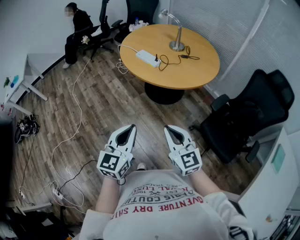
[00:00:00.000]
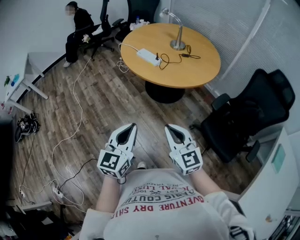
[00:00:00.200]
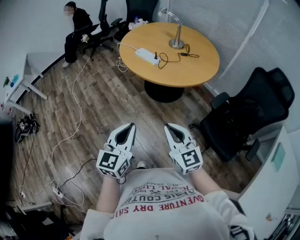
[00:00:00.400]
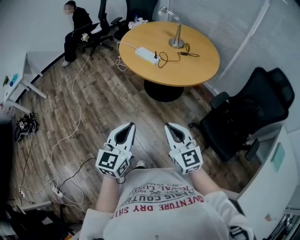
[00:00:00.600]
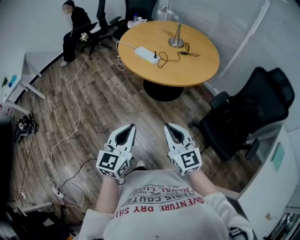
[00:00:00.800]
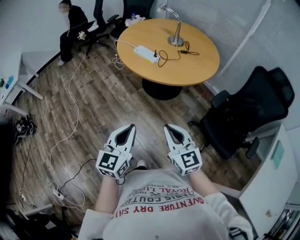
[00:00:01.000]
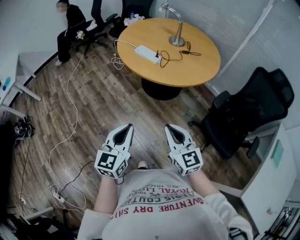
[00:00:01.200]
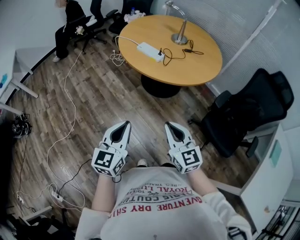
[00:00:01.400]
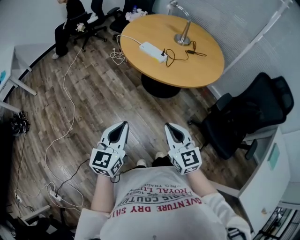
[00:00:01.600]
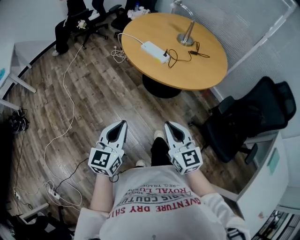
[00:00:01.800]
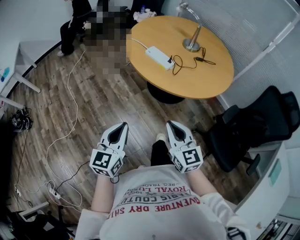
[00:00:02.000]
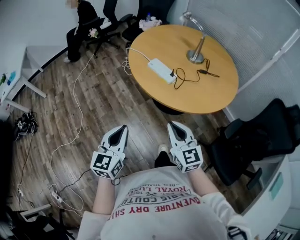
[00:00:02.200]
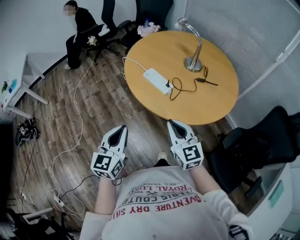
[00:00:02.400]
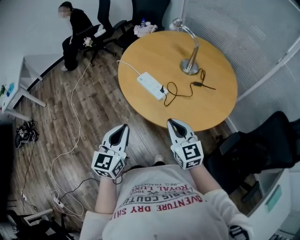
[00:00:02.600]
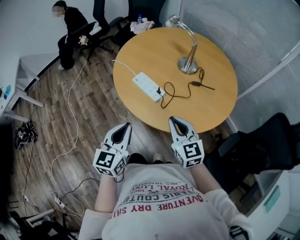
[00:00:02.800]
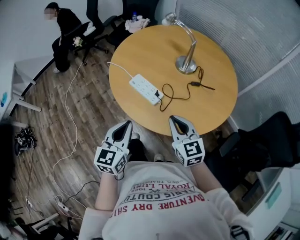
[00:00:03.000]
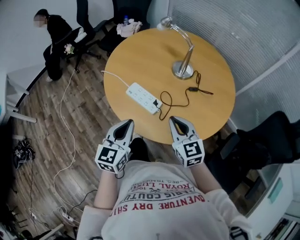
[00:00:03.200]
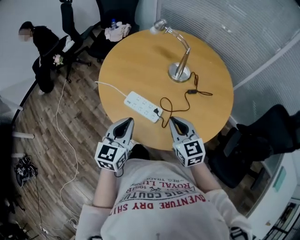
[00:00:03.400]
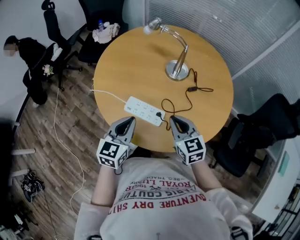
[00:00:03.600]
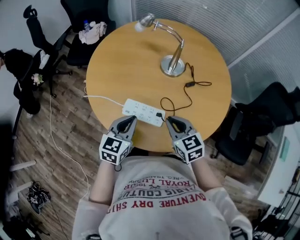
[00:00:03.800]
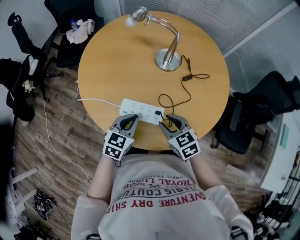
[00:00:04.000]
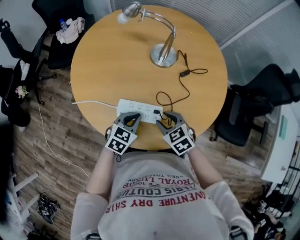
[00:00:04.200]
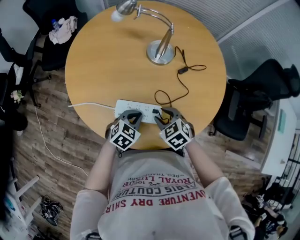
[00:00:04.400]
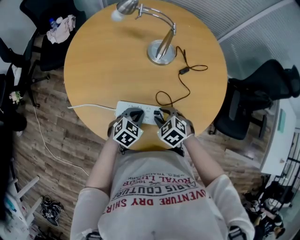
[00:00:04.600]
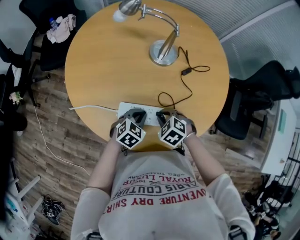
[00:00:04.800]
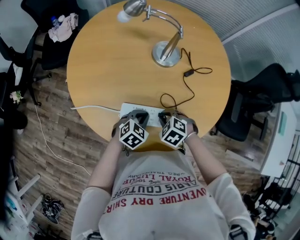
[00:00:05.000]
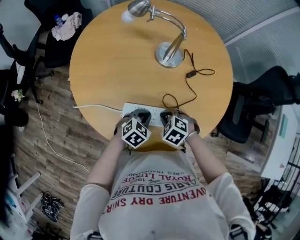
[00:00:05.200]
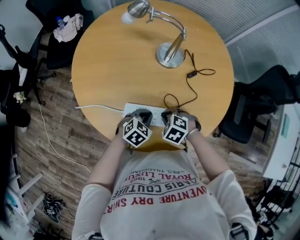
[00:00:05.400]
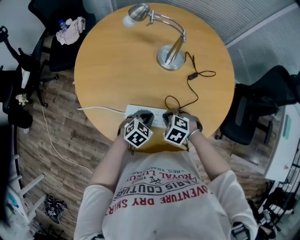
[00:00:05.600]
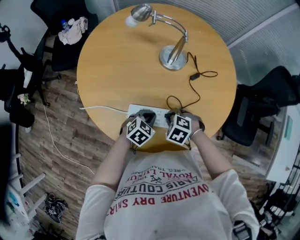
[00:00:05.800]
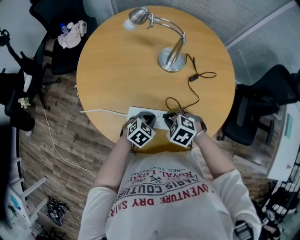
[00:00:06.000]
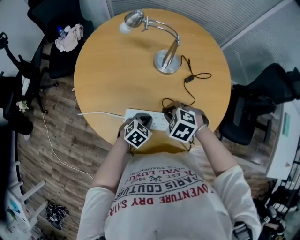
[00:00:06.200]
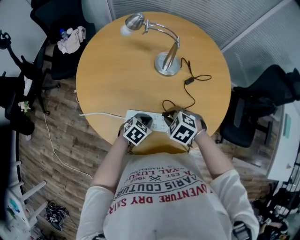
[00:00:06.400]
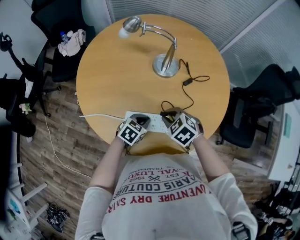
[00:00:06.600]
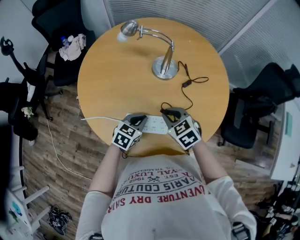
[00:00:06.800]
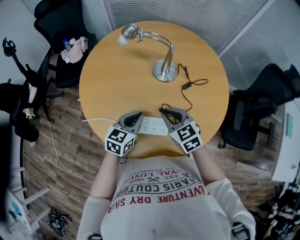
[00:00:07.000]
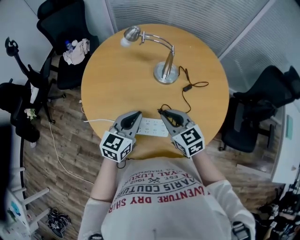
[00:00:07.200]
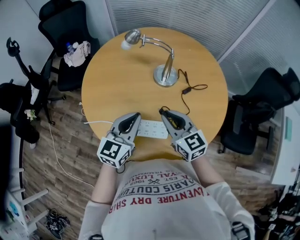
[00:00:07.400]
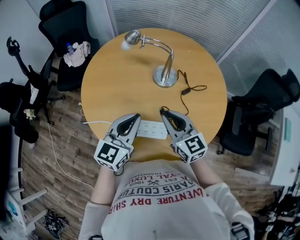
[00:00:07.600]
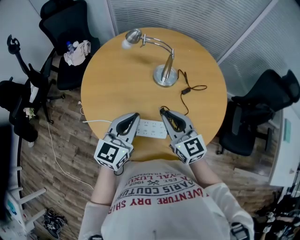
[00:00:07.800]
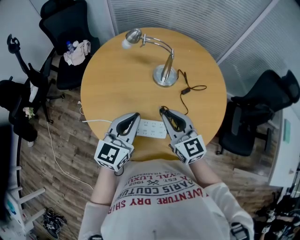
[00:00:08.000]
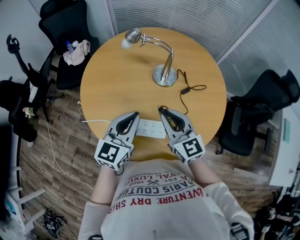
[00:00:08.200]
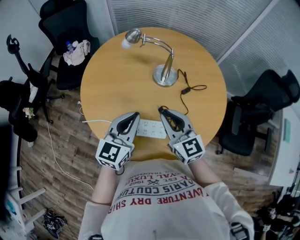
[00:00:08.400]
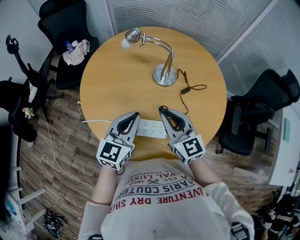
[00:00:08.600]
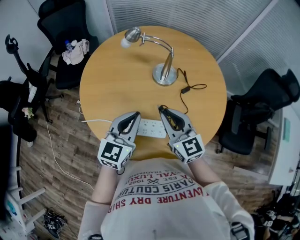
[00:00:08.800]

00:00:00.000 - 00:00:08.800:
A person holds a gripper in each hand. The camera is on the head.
00:00:00.000 - 00:00:01.400: The two grippers go roughly 10 cm to the left and forward.
00:00:01.400 - 00:00:03.000: The two grippers go approximately 35 cm forward.
00:00:03.000 - 00:00:04.400: The grippers both shift downward by roughly 20 cm. The right gripper tips its fingers downward by approximately 40 degrees, and opens. The left gripper tilts its fingers roughly 30 degrees downward.
00:00:04.400 - 00:00:05.800: The right gripper changes its angle by roughly 30 degrees, and closes its fingers.
00:00:05.800 - 00:00:07.400: The grippers both shift upward by approximately 20 cm. The right gripper points its fingers about 60 degrees further upward. Meanwhile the left gripper tilts its fingers some 40 degrees upward.
00:00:07.400 - 00:00:08.800: The grippers make only small movements.

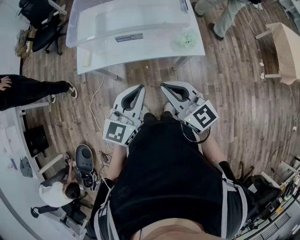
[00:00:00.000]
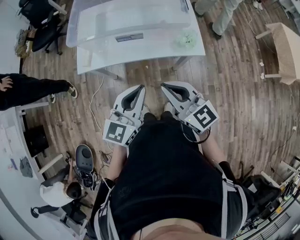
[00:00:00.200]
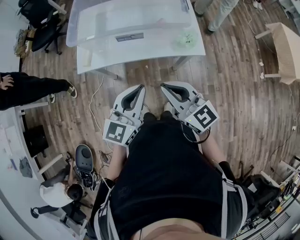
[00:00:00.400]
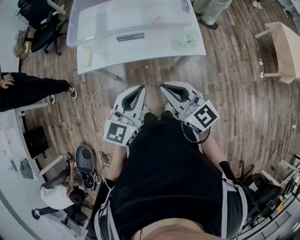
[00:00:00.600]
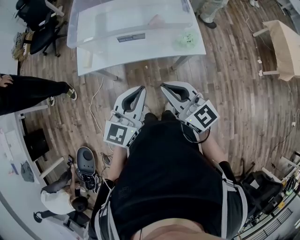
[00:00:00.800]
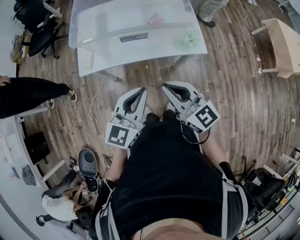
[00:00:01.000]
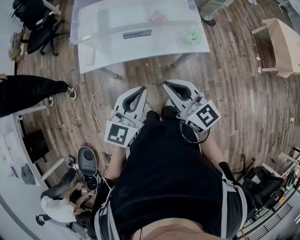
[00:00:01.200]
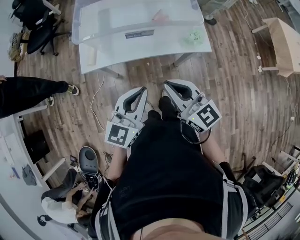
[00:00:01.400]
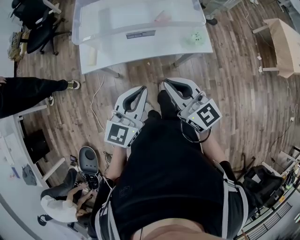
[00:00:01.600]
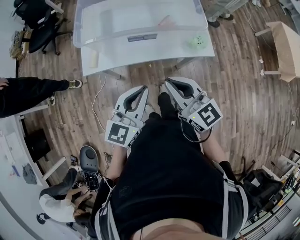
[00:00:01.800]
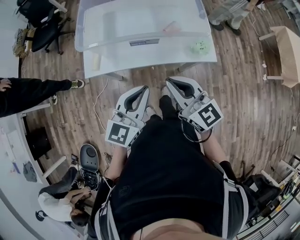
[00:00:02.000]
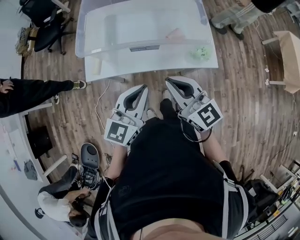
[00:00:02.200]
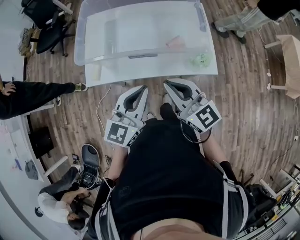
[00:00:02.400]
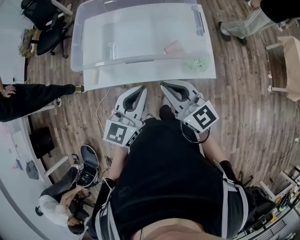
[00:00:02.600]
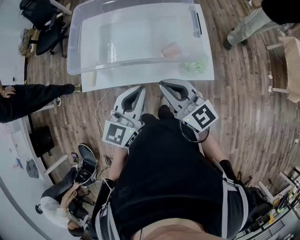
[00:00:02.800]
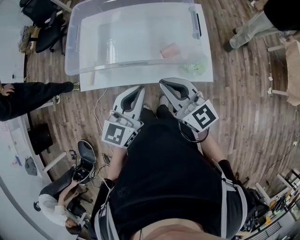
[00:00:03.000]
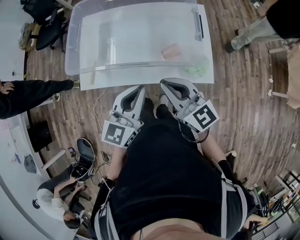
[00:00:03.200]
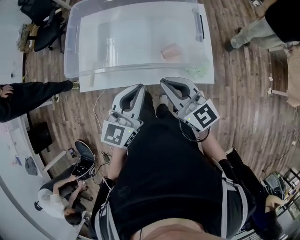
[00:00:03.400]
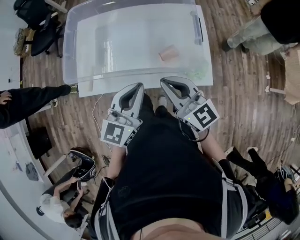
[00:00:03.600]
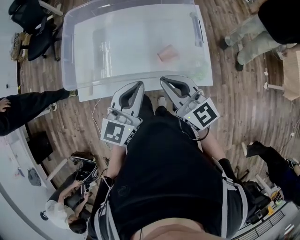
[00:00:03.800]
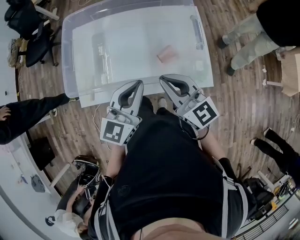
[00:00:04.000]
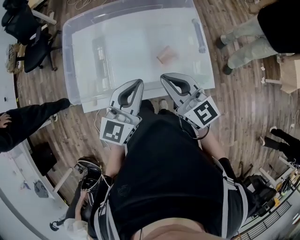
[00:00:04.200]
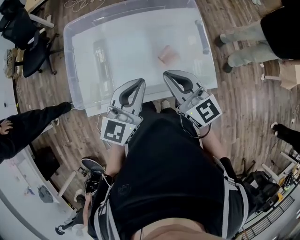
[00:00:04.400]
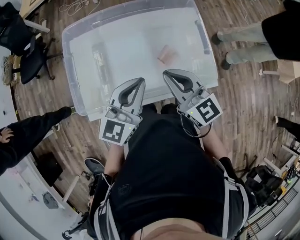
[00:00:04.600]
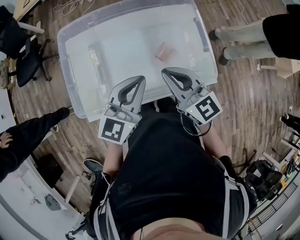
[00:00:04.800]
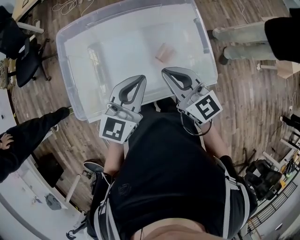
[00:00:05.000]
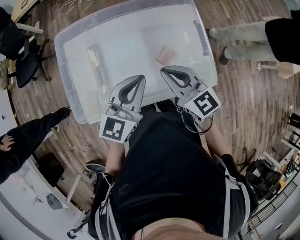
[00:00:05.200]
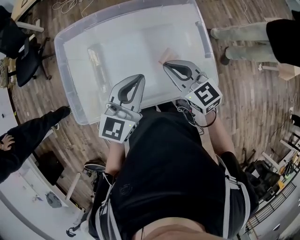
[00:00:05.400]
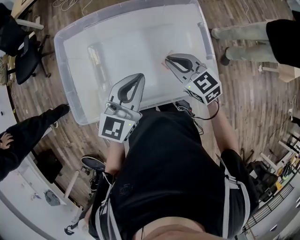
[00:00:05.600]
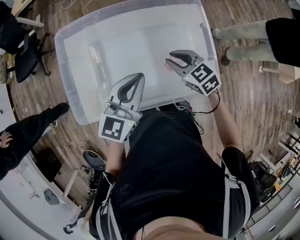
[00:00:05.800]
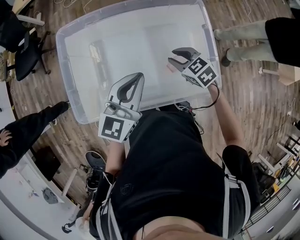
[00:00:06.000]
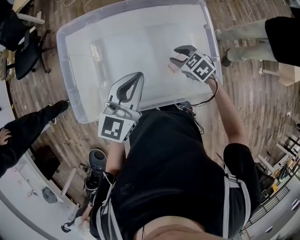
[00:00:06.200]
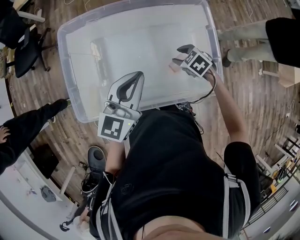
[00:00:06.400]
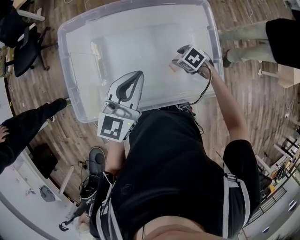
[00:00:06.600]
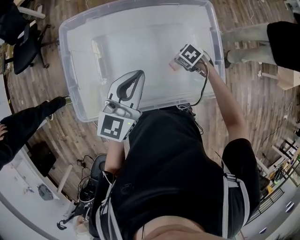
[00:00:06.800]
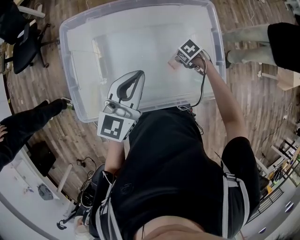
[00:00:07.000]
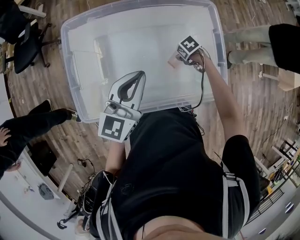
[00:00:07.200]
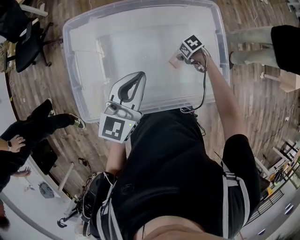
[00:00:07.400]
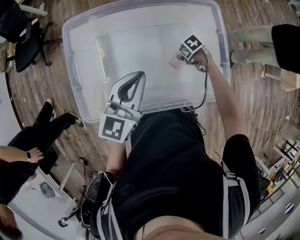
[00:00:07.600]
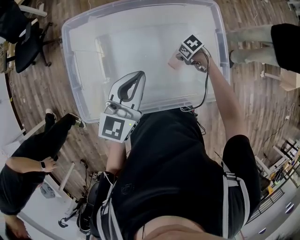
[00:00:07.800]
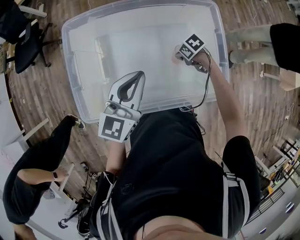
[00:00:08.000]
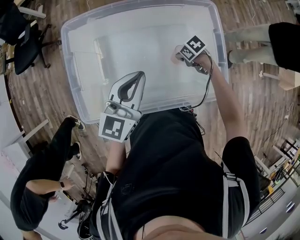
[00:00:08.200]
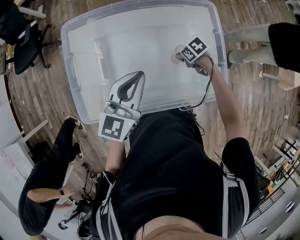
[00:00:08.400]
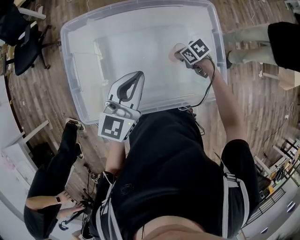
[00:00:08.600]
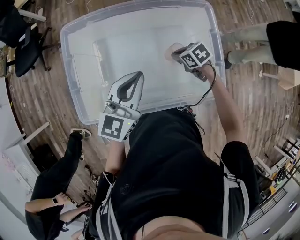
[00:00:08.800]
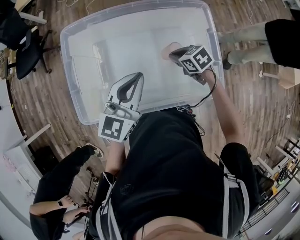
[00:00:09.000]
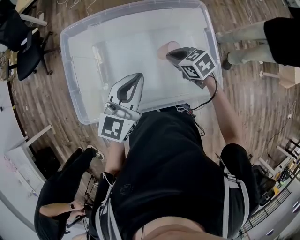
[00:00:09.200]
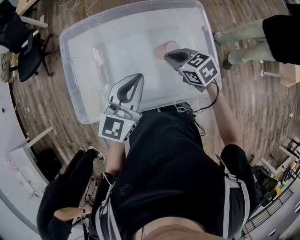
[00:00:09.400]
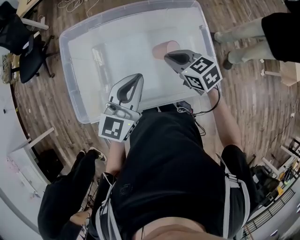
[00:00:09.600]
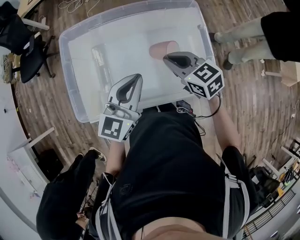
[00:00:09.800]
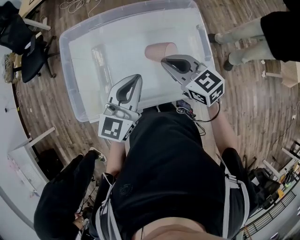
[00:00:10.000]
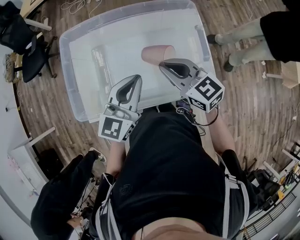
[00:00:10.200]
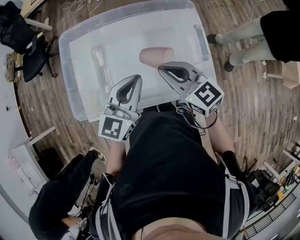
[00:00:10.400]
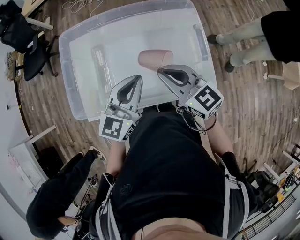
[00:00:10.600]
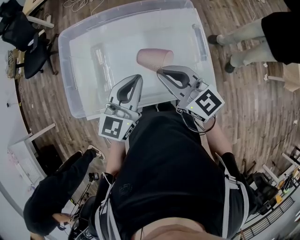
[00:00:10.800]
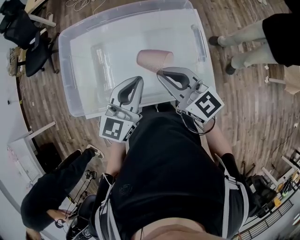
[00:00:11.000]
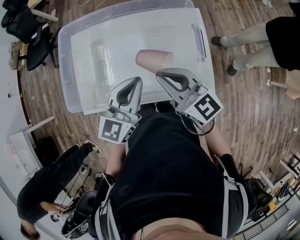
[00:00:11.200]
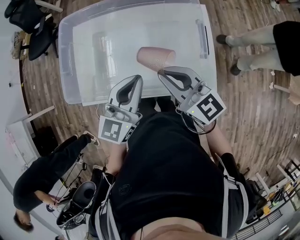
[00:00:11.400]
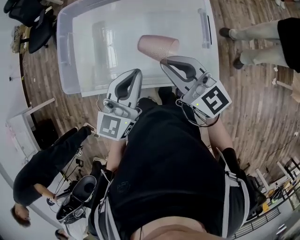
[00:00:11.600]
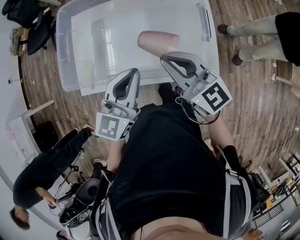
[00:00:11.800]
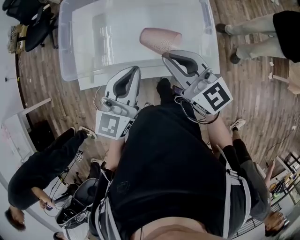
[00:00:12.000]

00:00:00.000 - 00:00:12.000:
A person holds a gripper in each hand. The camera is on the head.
00:00:00.000 - 00:00:01.600: The grippers both shift to the left by some 10 cm.
00:00:01.600 - 00:00:03.000: Both grippers move forward and to the right, some 20 cm.
00:00:03.000 - 00:00:04.400: The left gripper is displaced forward and to the left by approximately 15 cm; the right gripper goes about 15 cm forward.
00:00:04.400 - 00:00:06.000: The left gripper travels forward by roughly 10 cm; the right gripper is displaced downward and forward by about 20 cm, tilts its fingers about 40 degrees downward, and opens up.
00:00:06.000 - 00:00:07.600: The right gripper travels downward by some 15 cm, and turns by roughly 40 degrees.
00:00:07.600 - 00:00:09.000: The right gripper travels upward by some 15 cm, rotates approximately 30 degrees, and closes.
00:00:09.000 - 00:00:10.400: The right gripper is displaced upward and backward by roughly 20 cm, and angles its fingers upward, by roughly 40 degrees. Meanwhile the left gripper shifts by approximately 5 cm.
00:00:10.400 - 00:00:12.000: Both grippers travel together backward, roughly 10 cm.

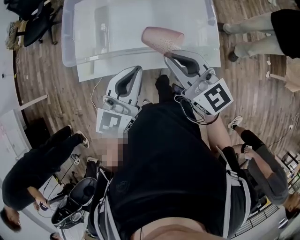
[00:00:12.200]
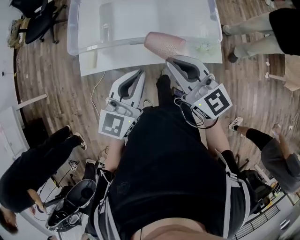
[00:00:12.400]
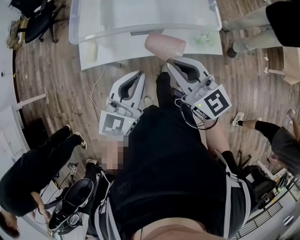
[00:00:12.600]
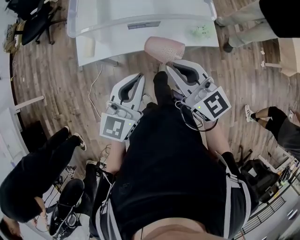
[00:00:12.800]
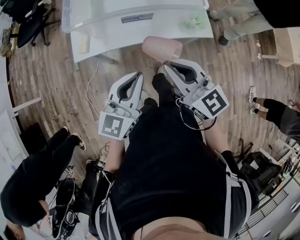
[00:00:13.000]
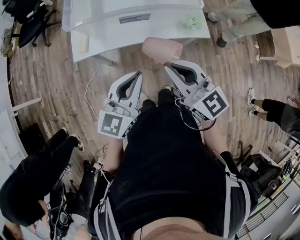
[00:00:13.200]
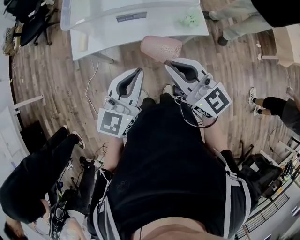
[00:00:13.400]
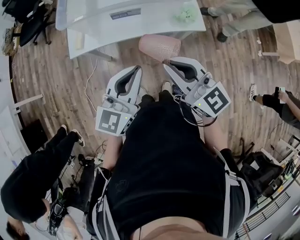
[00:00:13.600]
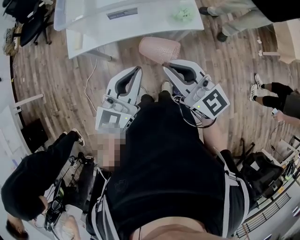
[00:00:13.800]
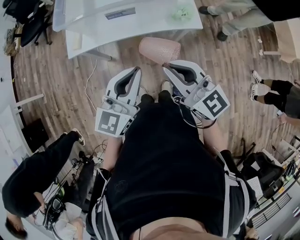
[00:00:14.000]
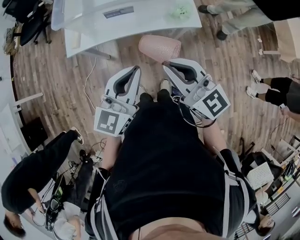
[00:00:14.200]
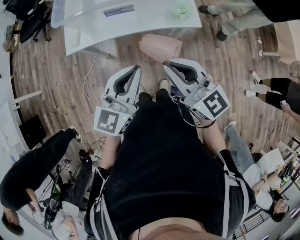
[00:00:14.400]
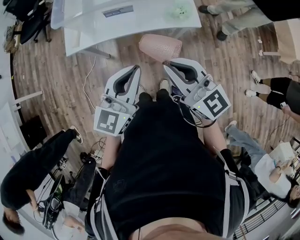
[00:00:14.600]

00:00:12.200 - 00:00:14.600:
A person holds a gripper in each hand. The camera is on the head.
00:00:12.200 - 00:00:13.400: Both grippers move backward, some 25 cm.
00:00:13.400 - 00:00:14.600: The two grippers go roughly 5 cm to the right.
